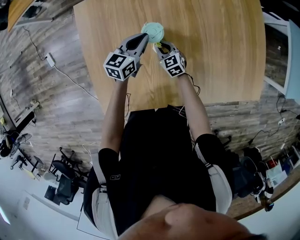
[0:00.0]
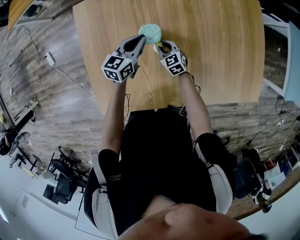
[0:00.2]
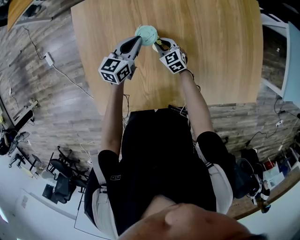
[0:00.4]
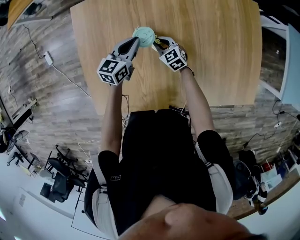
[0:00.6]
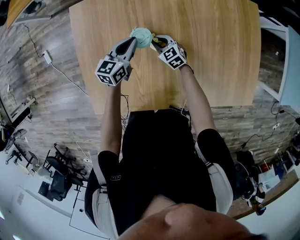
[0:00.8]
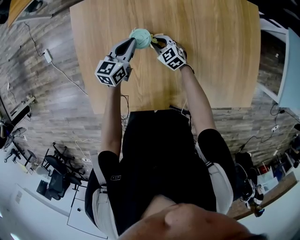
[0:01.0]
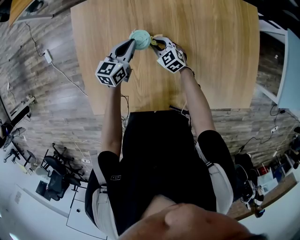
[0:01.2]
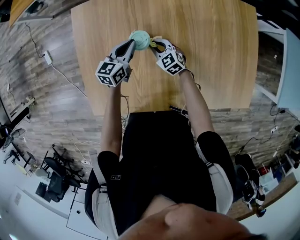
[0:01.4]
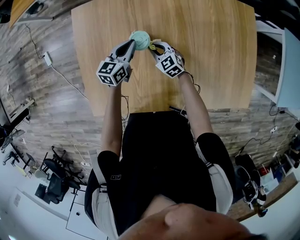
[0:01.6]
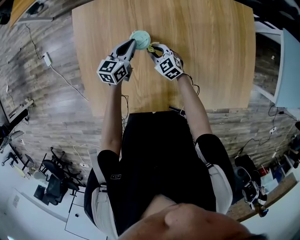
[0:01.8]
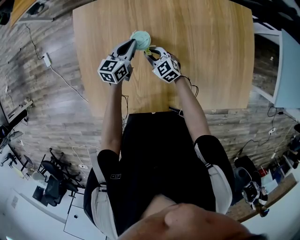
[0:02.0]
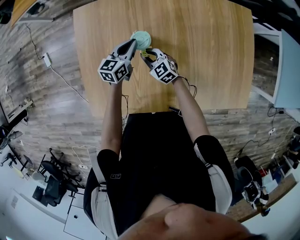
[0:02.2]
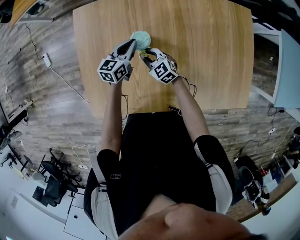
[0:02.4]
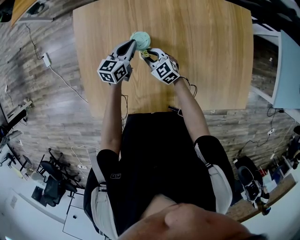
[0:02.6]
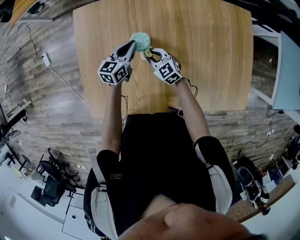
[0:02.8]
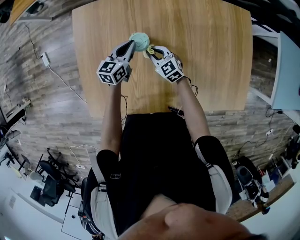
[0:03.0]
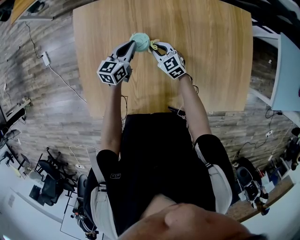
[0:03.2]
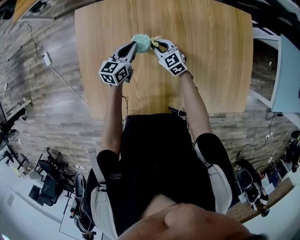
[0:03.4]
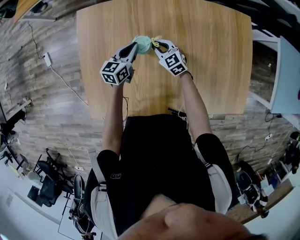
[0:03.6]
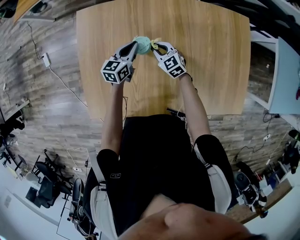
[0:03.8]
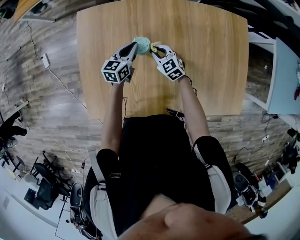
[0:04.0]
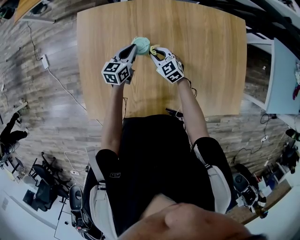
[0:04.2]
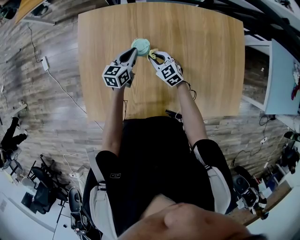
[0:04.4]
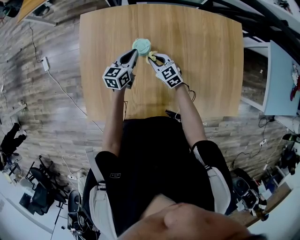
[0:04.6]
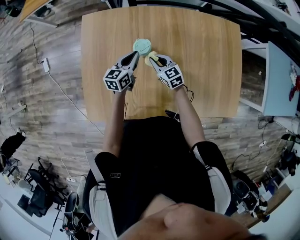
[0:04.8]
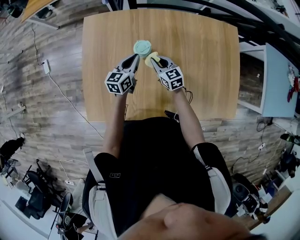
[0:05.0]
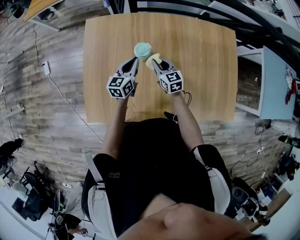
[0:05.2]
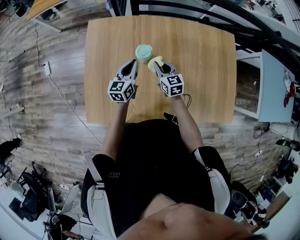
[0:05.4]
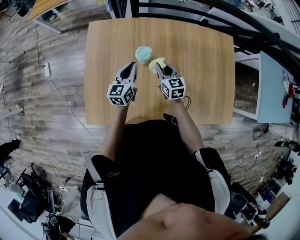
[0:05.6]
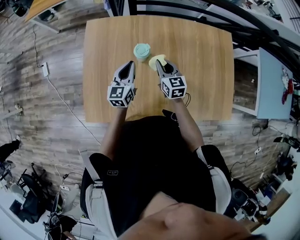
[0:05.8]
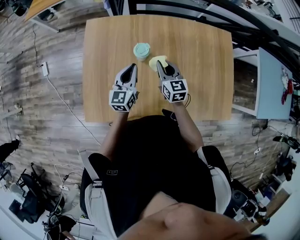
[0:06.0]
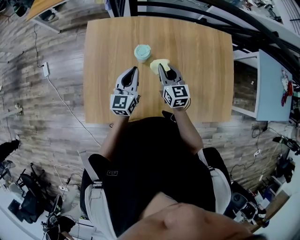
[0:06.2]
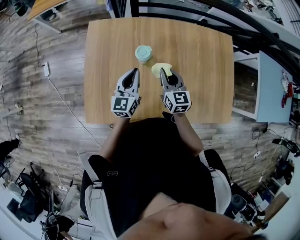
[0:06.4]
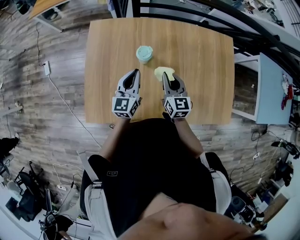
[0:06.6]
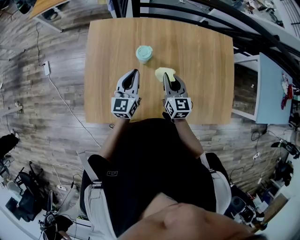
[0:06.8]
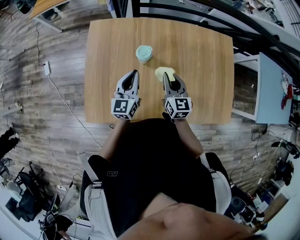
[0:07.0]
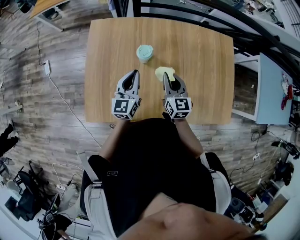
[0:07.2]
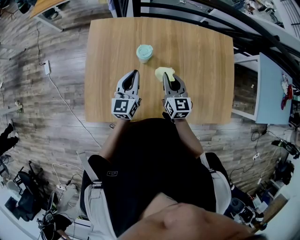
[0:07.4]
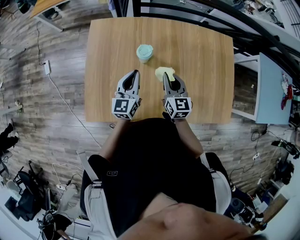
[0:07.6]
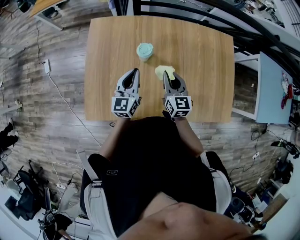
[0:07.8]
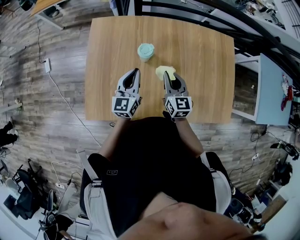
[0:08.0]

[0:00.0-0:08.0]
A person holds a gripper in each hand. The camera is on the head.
0:00.0 to 0:01.6: The right gripper moves approximately 5 cm.
0:01.6 to 0:03.2: The grippers stay close to where they were, moving slightly.
0:03.2 to 0:04.8: The right gripper shifts by approximately 5 cm.
0:04.8 to 0:06.4: The right gripper shifts roughly 15 cm upward, and rotates some 30 degrees; the left gripper travels upward and backward by approximately 15 cm, and turns by some 20 degrees.
0:06.4 to 0:08.0: There are only small adjustments of the grippers.

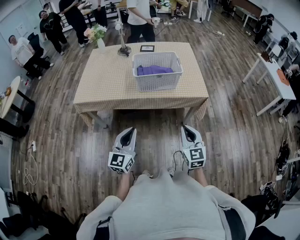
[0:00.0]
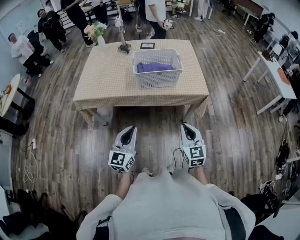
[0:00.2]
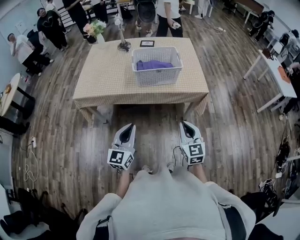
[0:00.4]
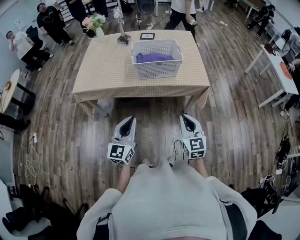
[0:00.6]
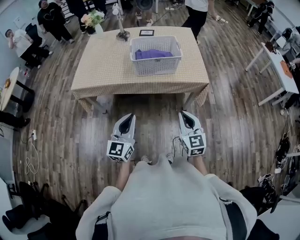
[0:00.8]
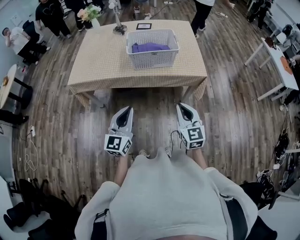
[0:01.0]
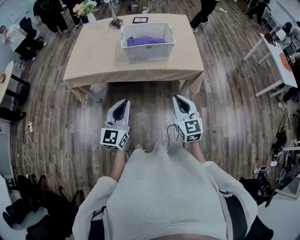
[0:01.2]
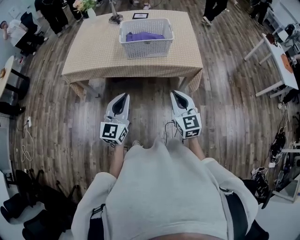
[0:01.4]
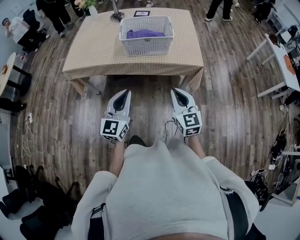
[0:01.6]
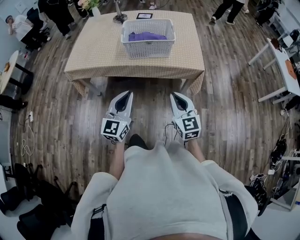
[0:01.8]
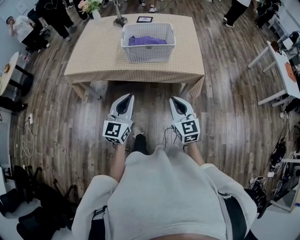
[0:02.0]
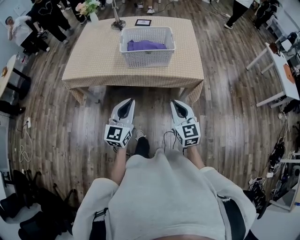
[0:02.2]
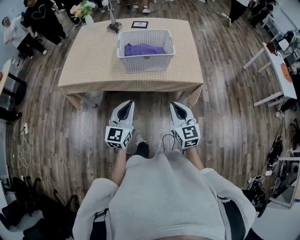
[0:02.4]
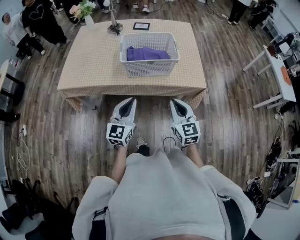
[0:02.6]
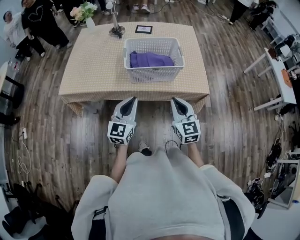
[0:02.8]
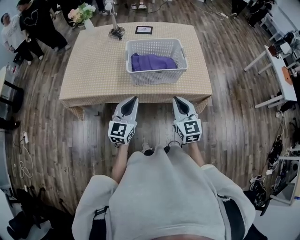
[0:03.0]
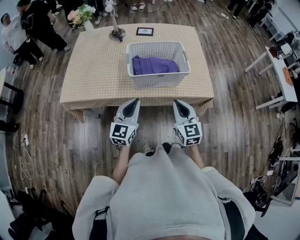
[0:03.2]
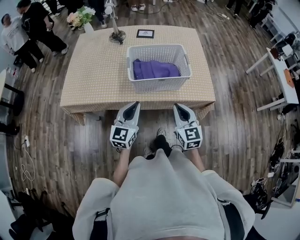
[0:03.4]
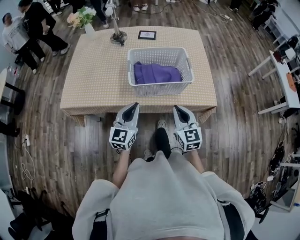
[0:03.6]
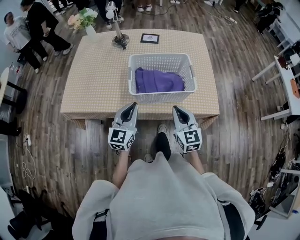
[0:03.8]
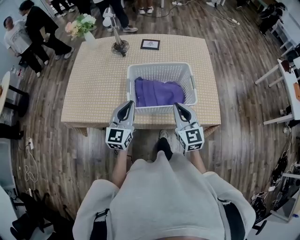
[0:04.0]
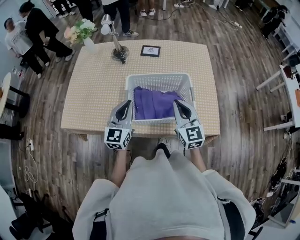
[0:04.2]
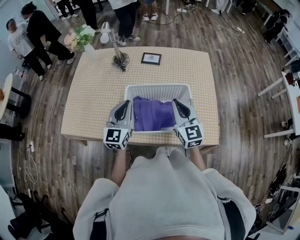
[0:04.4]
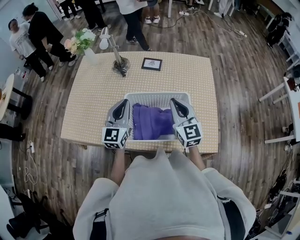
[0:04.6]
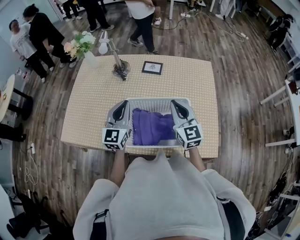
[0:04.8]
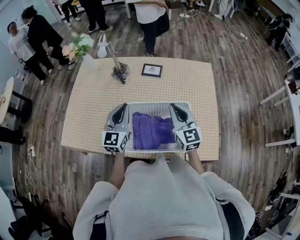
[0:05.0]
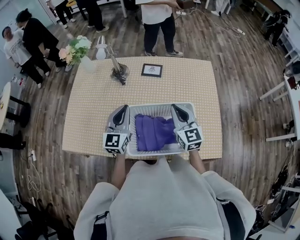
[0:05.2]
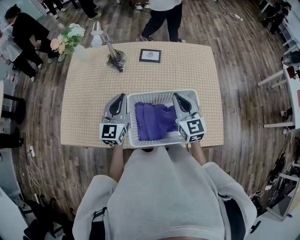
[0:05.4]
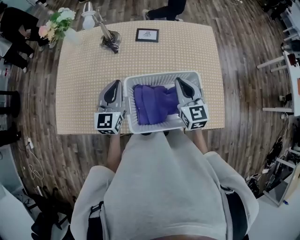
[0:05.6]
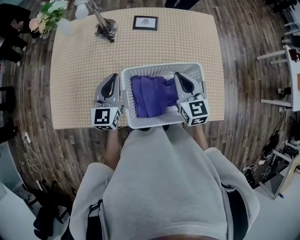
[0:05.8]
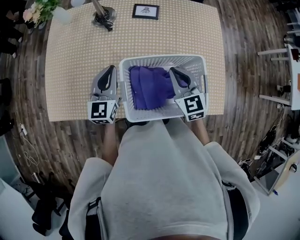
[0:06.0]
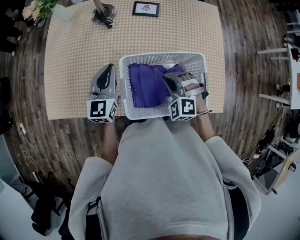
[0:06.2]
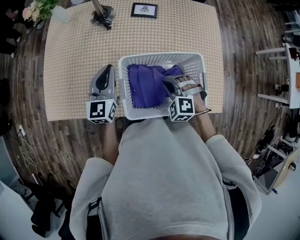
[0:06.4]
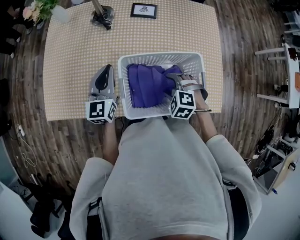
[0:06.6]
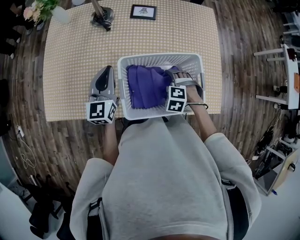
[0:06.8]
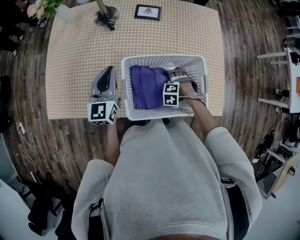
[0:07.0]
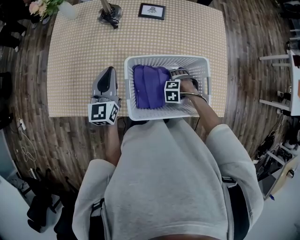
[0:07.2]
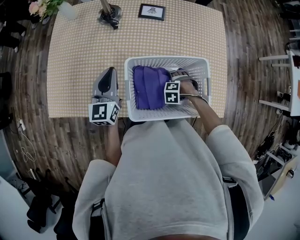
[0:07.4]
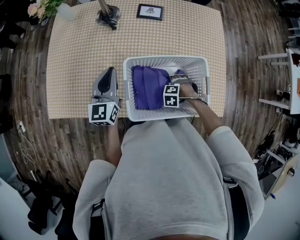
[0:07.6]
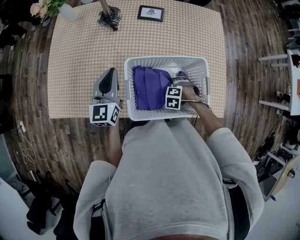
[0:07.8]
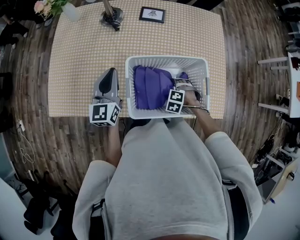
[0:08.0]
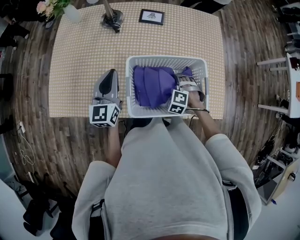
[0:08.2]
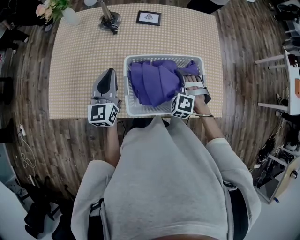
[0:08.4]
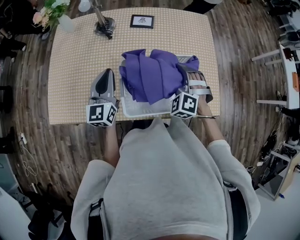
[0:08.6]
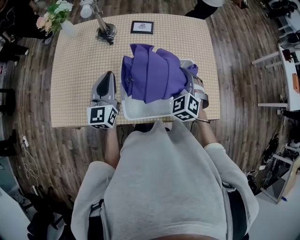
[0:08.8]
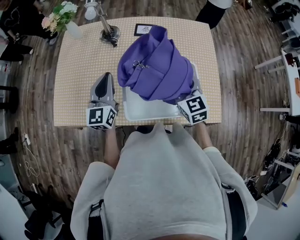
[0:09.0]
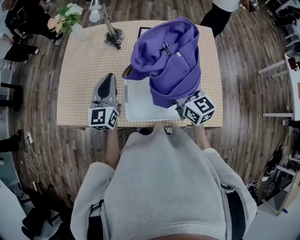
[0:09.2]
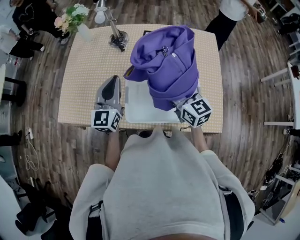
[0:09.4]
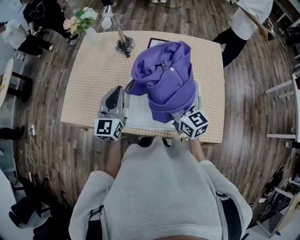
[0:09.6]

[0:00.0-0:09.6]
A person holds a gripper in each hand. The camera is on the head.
0:00.0 to 0:01.6: The left gripper moves to the right, some 10 cm. Meanwhile the right gripper shifts by approximately 5 cm.
0:01.6 to 0:03.2: The right gripper moves forward and to the left, roughly 20 cm; the left gripper moves forward, about 25 cm.
0:03.2 to 0:04.8: The two grippers go approximately 35 cm forward.
0:04.8 to 0:06.4: The right gripper heads downward and to the left, covering roughly 20 cm, and tilts its fingers approximately 50 degrees downward; the left gripper is displaced downward and to the left by approximately 10 cm.
0:06.4 to 0:08.0: The right gripper goes approximately 15 cm downward, turns by about 20 degrees, and opens up.
0:08.0 to 0:09.6: The right gripper is displaced upward by approximately 30 cm, and angles its fingers upward, by approximately 70 degrees. The left gripper changes place by about 10 cm.

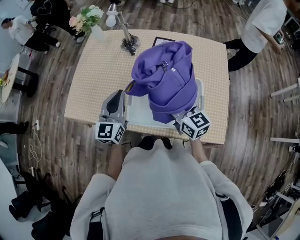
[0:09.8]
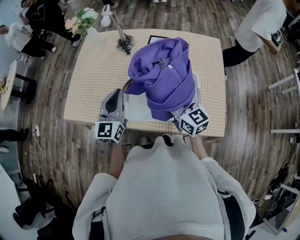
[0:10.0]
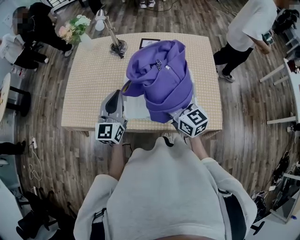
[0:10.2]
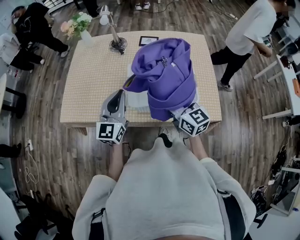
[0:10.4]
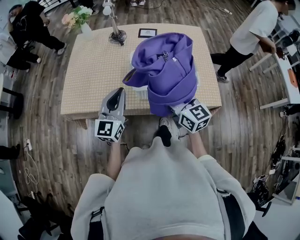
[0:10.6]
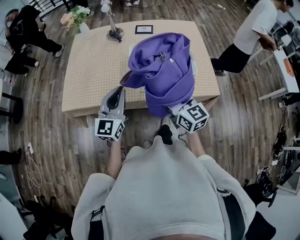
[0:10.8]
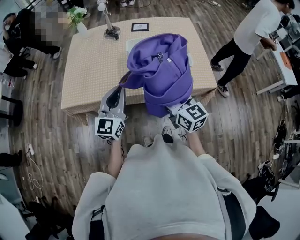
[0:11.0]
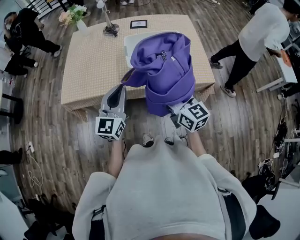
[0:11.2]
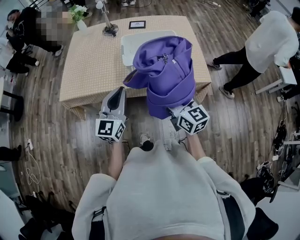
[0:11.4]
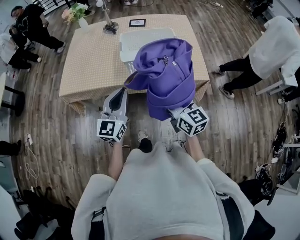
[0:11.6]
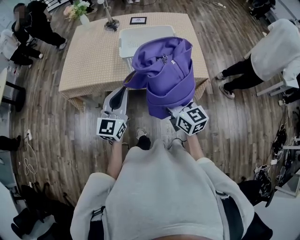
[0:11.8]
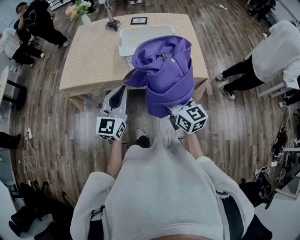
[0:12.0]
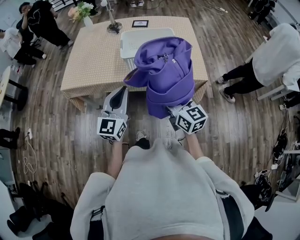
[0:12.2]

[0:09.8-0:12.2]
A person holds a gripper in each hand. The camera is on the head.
0:09.8 to 0:11.0: The grippers both shift backward by about 25 cm.
0:11.0 to 0:12.2: Both grippers move backward and to the right, approximately 15 cm.

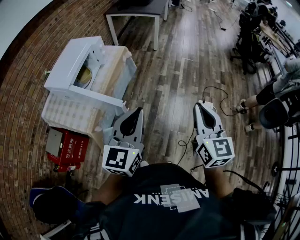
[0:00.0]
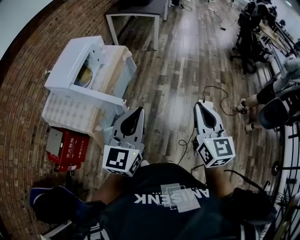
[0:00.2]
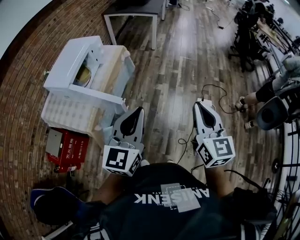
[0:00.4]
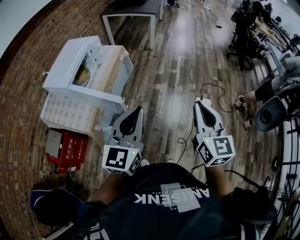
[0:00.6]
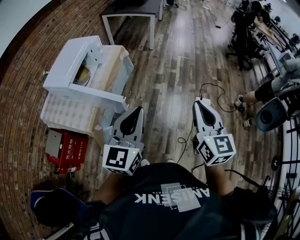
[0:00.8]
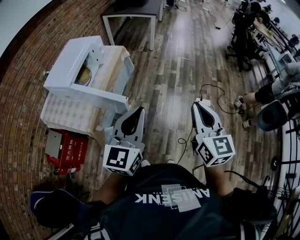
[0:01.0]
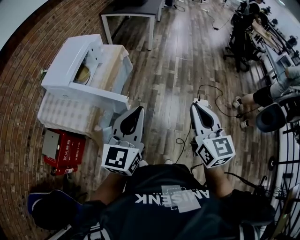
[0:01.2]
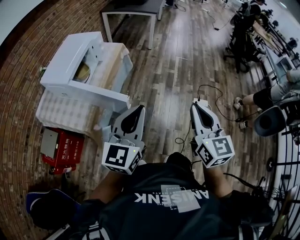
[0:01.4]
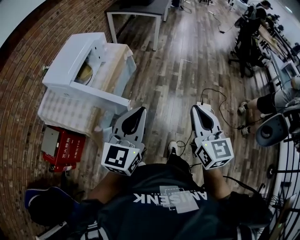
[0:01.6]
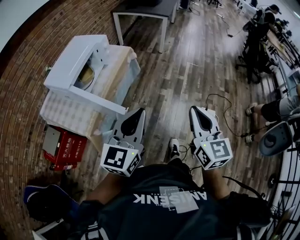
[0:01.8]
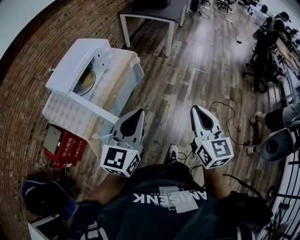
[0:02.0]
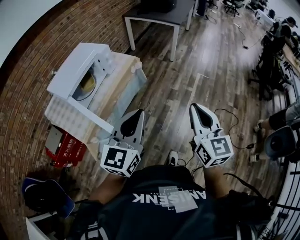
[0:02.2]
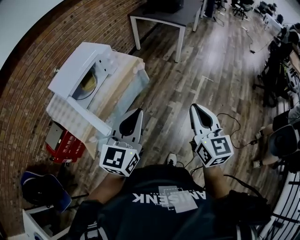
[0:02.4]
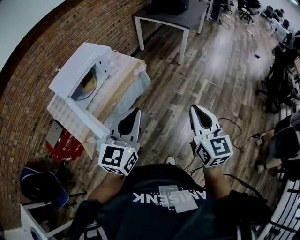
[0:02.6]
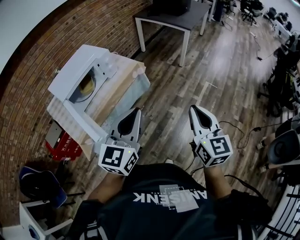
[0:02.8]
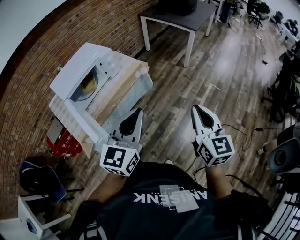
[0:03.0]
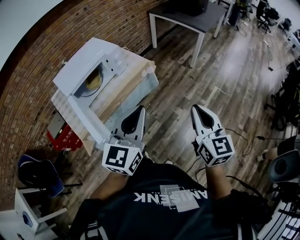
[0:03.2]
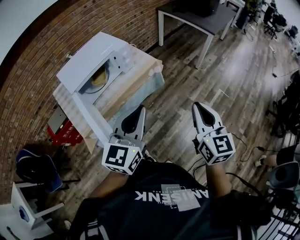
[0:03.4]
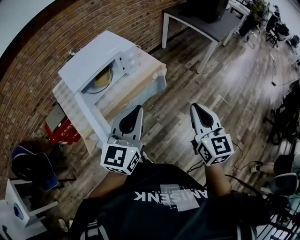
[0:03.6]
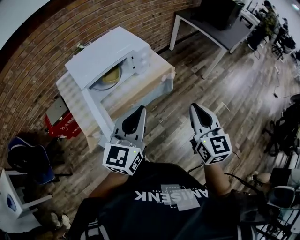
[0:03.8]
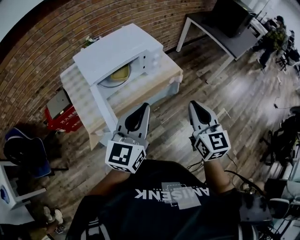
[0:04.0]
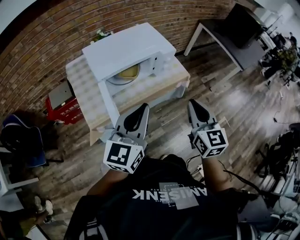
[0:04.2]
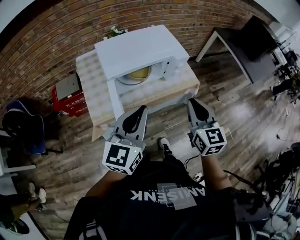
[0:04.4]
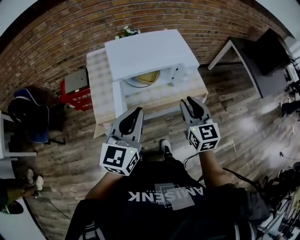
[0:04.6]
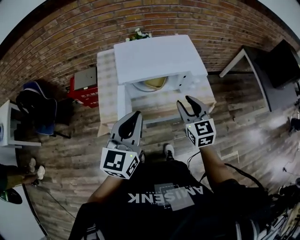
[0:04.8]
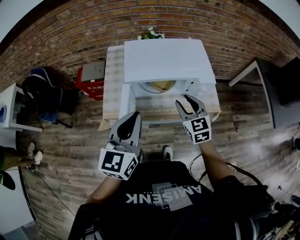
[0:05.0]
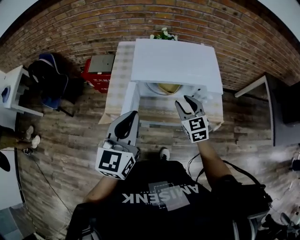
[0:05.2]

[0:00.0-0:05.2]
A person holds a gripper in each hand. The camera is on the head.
0:00.0 to 0:01.8: Both grippers travel together forward, some 5 cm.
0:01.8 to 0:03.4: The right gripper moves some 30 cm, and changes its angle by some 30 degrees. Meanwhile the left gripper moves approximately 25 cm, and turns by approximately 30 degrees.
0:03.4 to 0:05.2: The right gripper moves about 50 cm, turns by roughly 60 degrees, and opens up. The left gripper changes place by approximately 30 cm, and swivels approximately 50 degrees.
